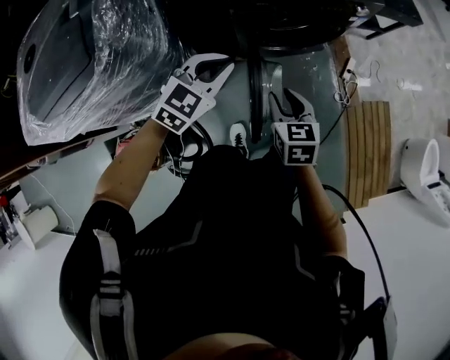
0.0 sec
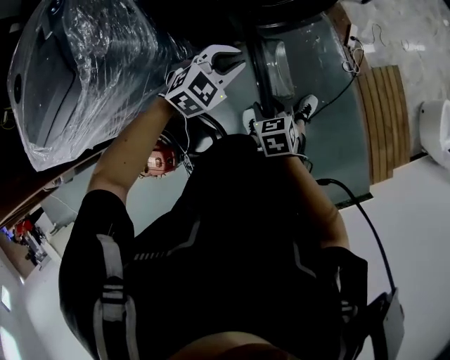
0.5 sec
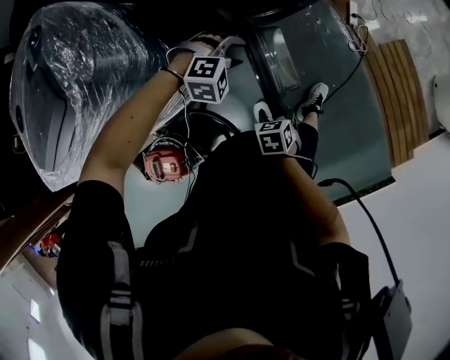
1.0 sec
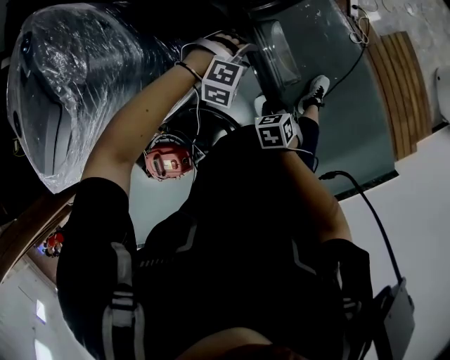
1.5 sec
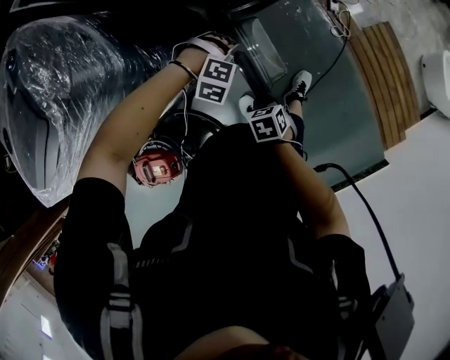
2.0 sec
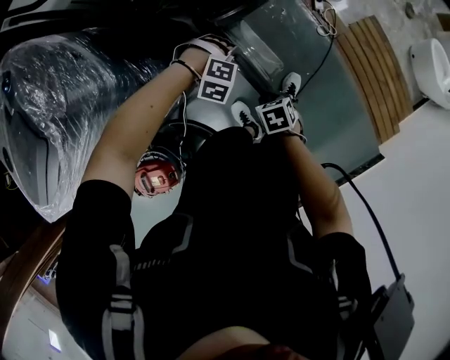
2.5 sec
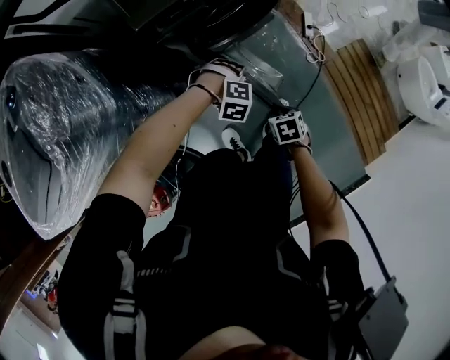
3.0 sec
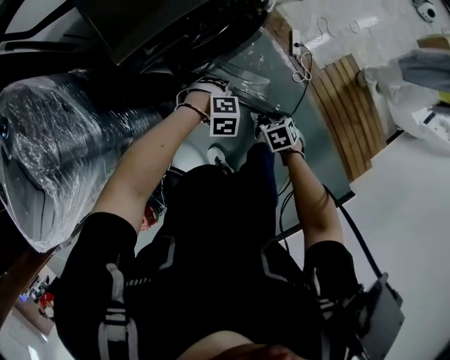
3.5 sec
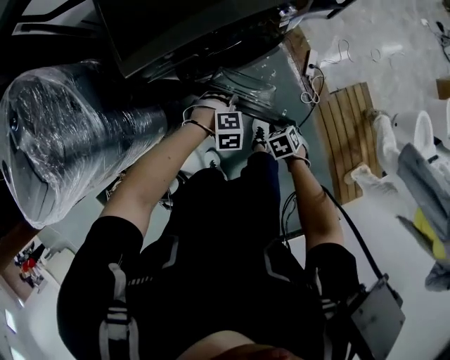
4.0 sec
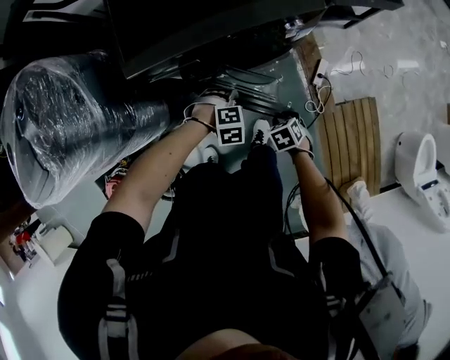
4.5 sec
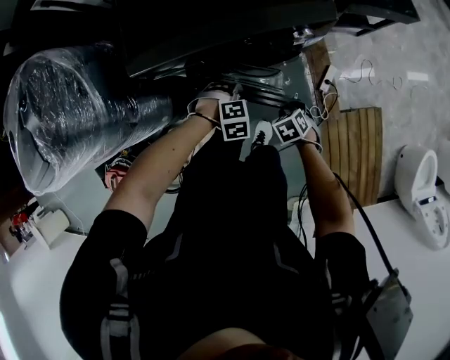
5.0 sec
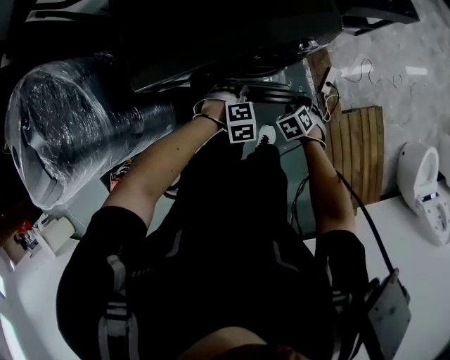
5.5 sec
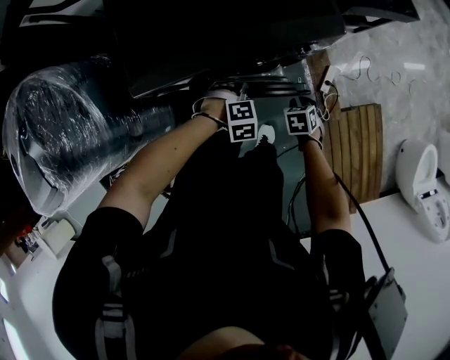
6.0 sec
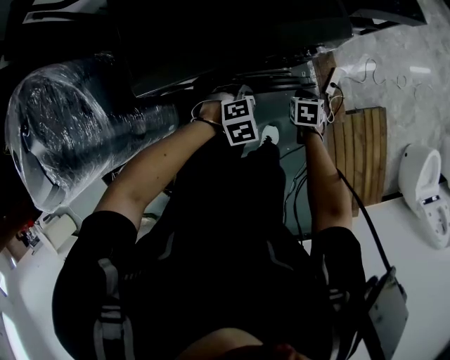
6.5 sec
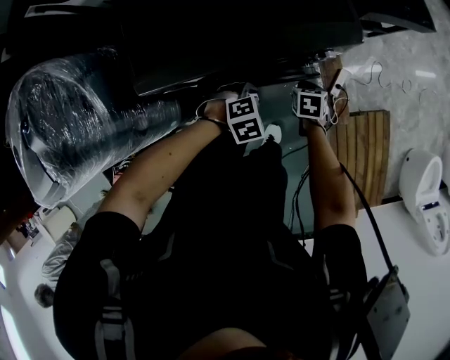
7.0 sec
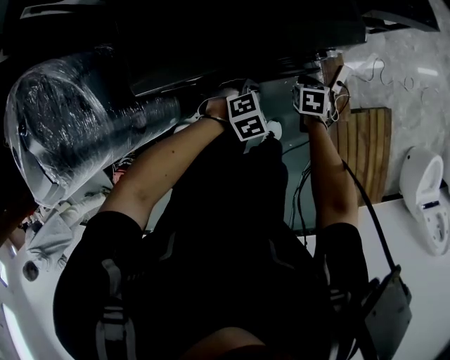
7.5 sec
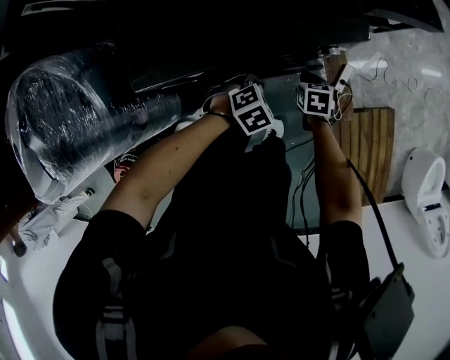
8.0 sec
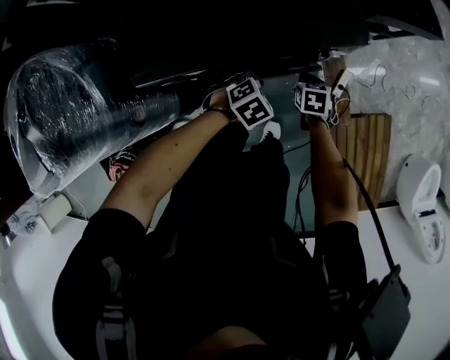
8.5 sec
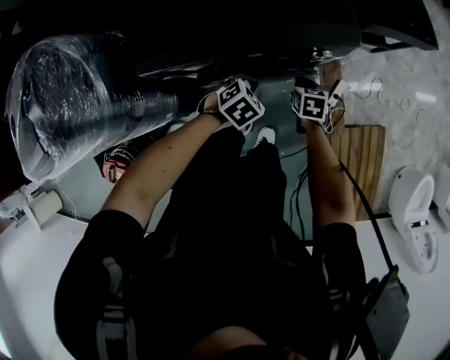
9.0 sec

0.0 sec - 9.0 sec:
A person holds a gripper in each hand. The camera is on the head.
0.0 sec - 2.0 sec: Both grippers travel together downward, approximately 25 cm. The right gripper swivels roughly 30 degrees. Meanwhile the left gripper twists approximately 70 degrees clockwise, seen from behind, and opens.
2.0 sec - 4.5 sec: The right gripper shifts by some 40 cm, and rotates approximately 30 degrees. Meanwhile the left gripper changes place by roughly 25 cm, and rotates around the line of its fingers by about 40 degrees, counterclockwise from behind.
4.5 sec - 7.0 sec: The right gripper moves some 20 cm, rotates approximately 30 degrees, and closes, while the left gripper shifts by roughly 10 cm.
7.0 sec - 9.0 sec: The left gripper turns by roughly 30 degrees, and closes.

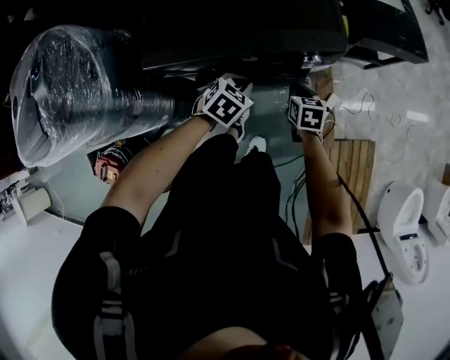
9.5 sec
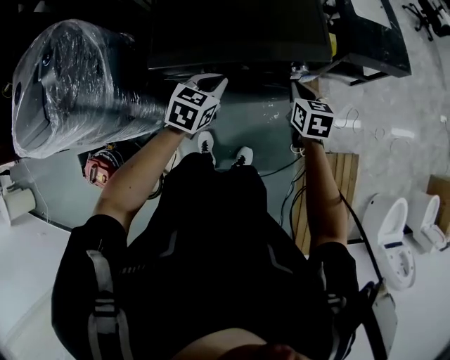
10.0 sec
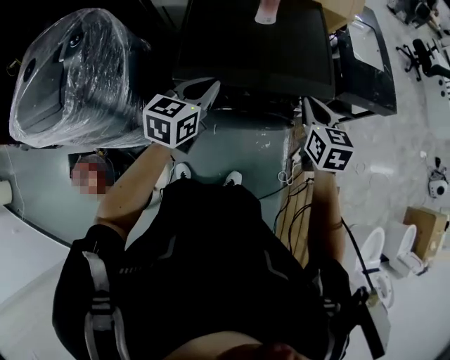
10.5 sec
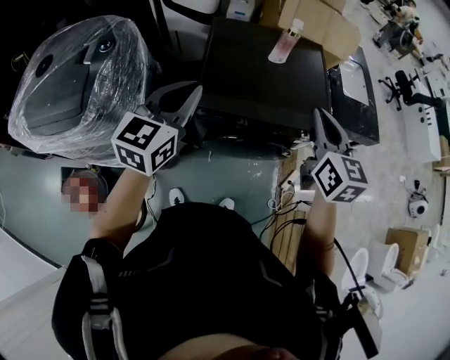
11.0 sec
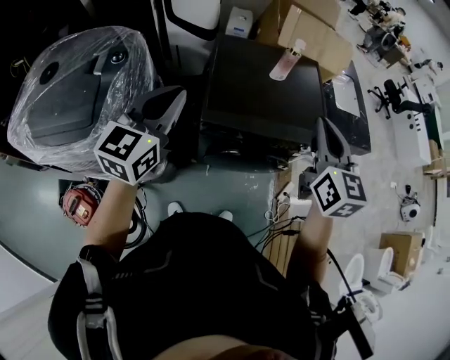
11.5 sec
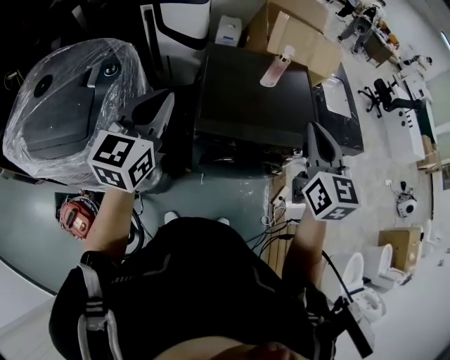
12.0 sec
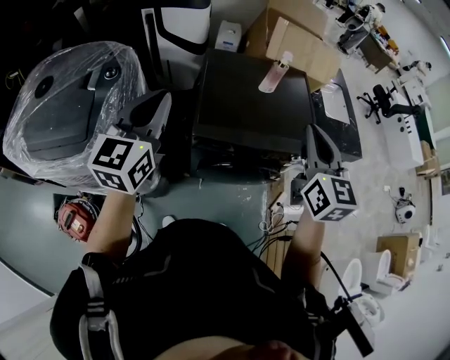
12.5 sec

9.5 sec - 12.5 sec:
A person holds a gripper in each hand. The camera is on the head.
9.5 sec - 11.0 sec: The left gripper travels upward and to the left by some 50 cm, and points its fingers approximately 50 degrees further upward. Meanwhile the right gripper moves upward, about 50 cm, and tips its fingers upward by roughly 40 degrees.
11.0 sec - 12.5 sec: The left gripper moves to the left and upward, approximately 10 cm; the right gripper goes some 5 cm upward.

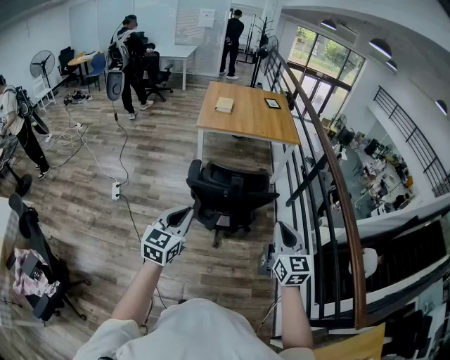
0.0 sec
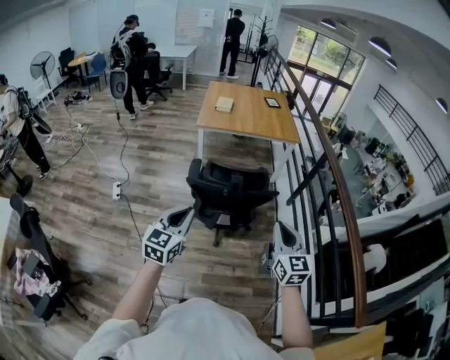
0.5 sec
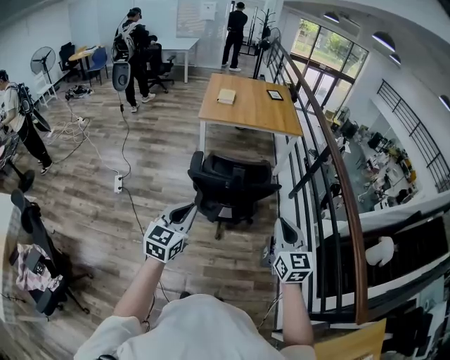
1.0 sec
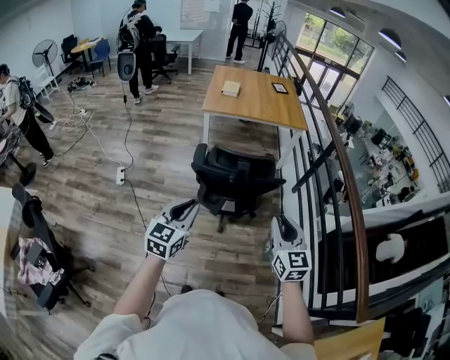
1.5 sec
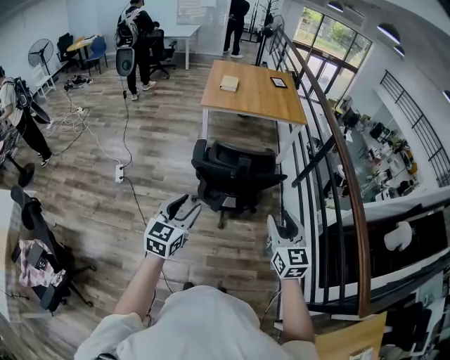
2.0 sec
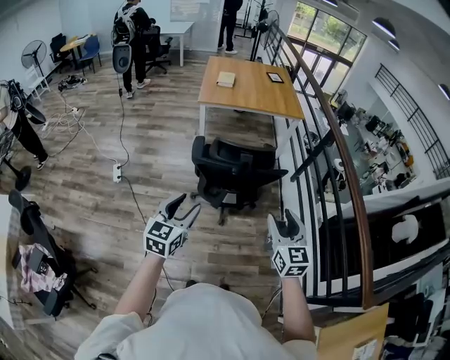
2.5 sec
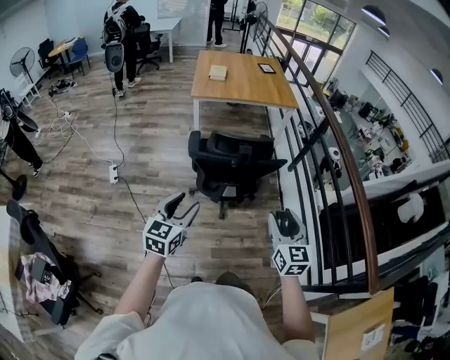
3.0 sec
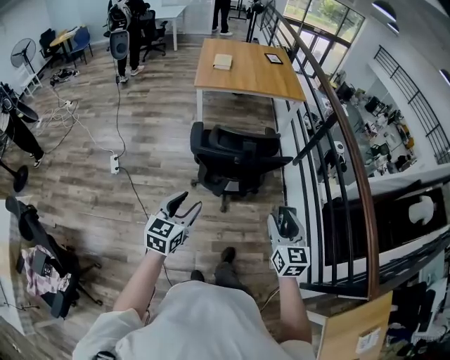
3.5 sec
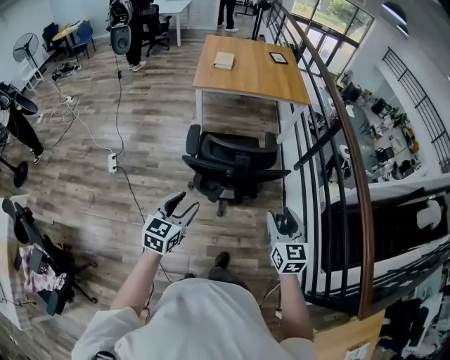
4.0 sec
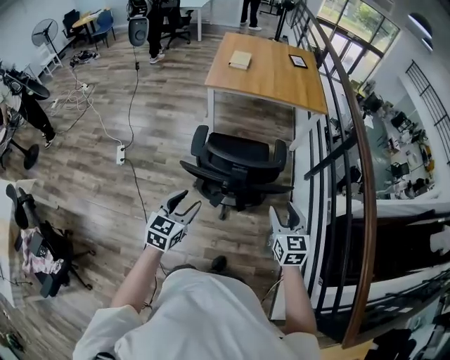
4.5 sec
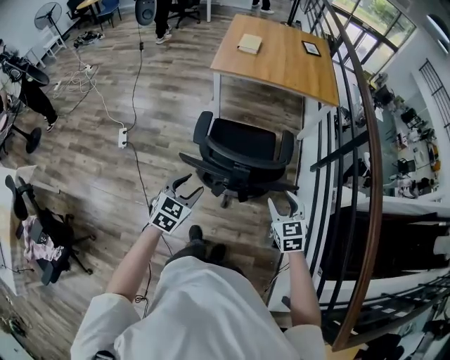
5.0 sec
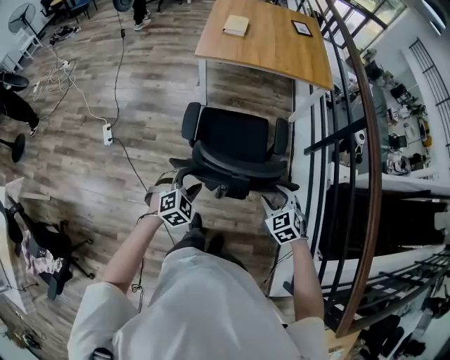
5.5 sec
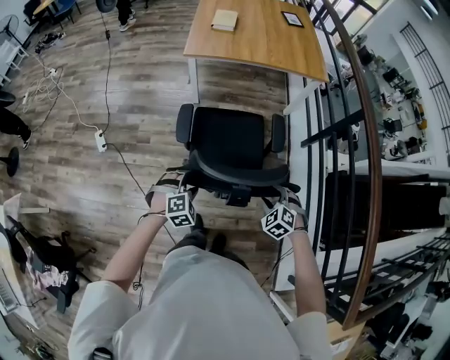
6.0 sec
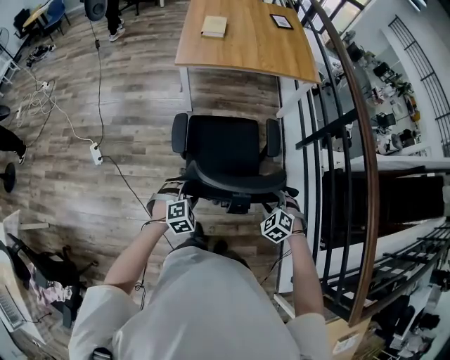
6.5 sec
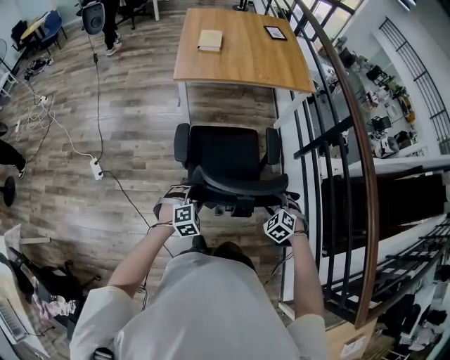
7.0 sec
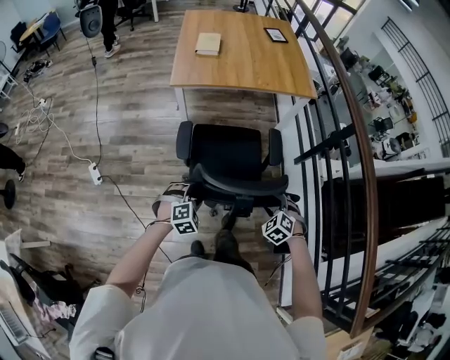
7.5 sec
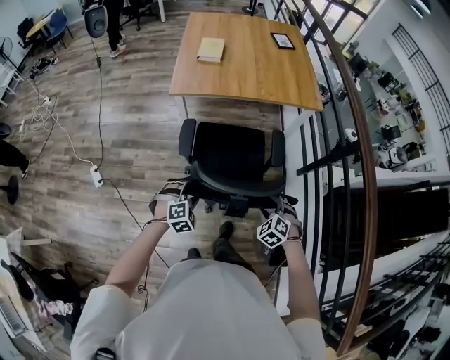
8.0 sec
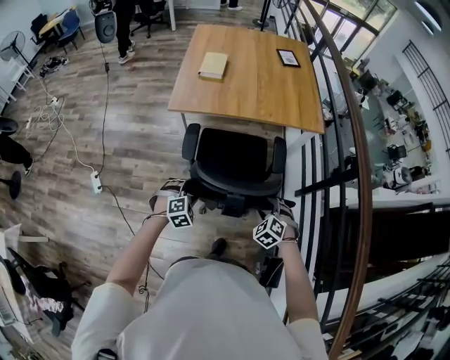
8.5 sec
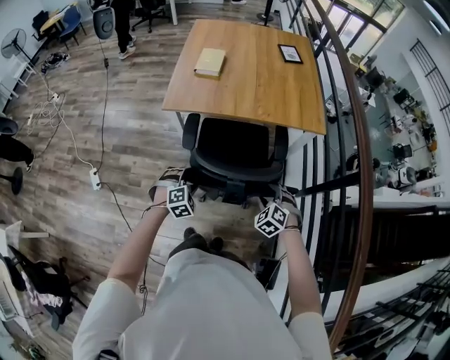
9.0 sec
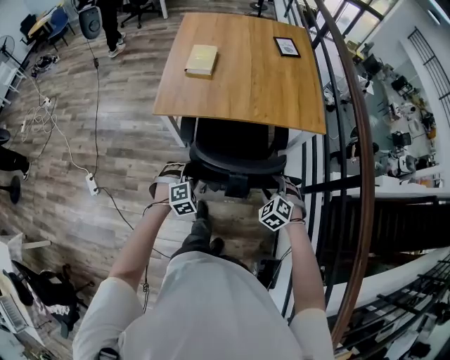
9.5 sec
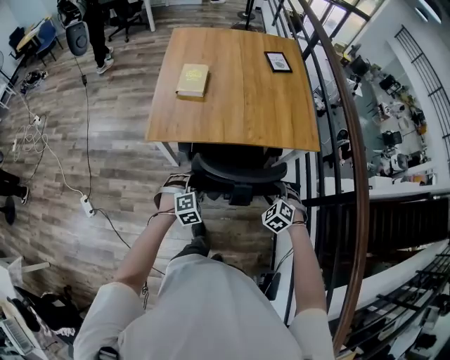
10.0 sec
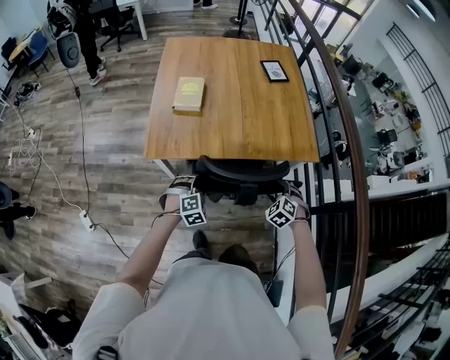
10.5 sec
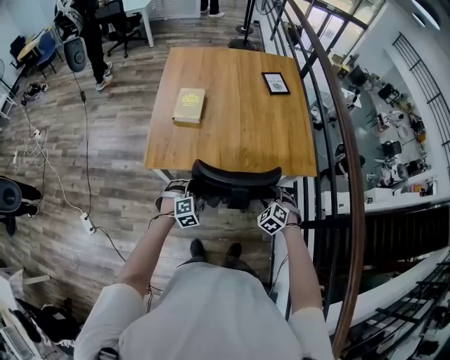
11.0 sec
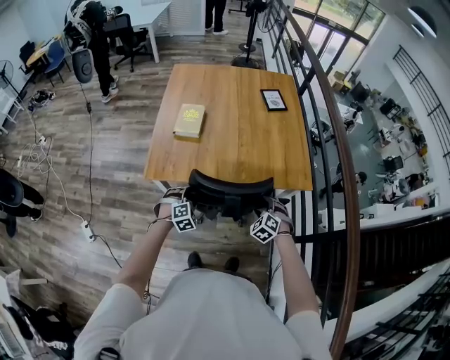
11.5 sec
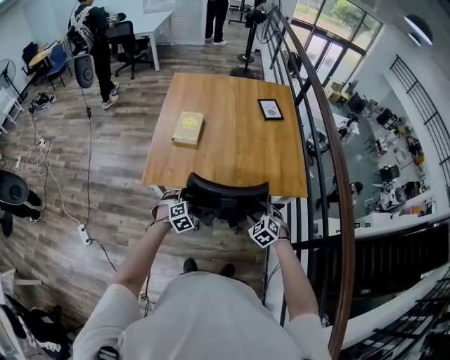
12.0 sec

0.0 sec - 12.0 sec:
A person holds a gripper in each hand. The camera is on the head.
0.0 sec - 2.0 sec: The right gripper opens up. The left gripper opens its fingers.
2.0 sec - 4.0 sec: Both grippers travel together forward and downward, approximately 10 cm.
4.0 sec - 6.0 sec: The right gripper shifts roughly 30 cm downward and forward, and tips its fingers downward by some 40 degrees, while the left gripper travels forward and downward by approximately 30 cm, and twists about 50 degrees clockwise, seen from behind.
6.0 sec - 8.0 sec: The two grippers go about 20 cm forward.
8.0 sec - 10.0 sec: The grippers both shift forward by about 35 cm.
10.0 sec - 12.0 sec: Both grippers move forward, some 10 cm.

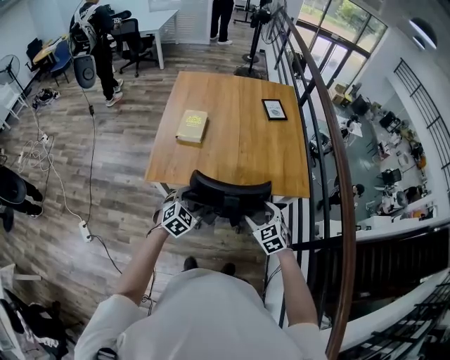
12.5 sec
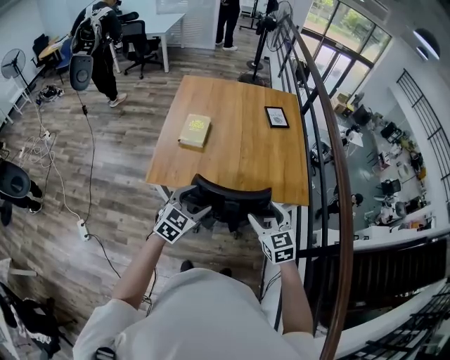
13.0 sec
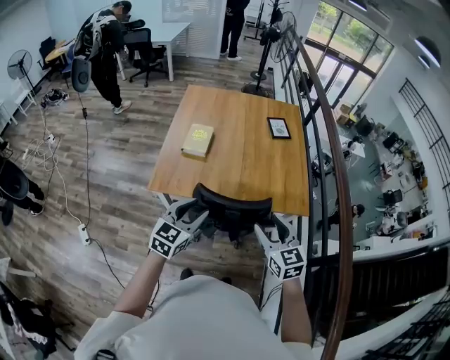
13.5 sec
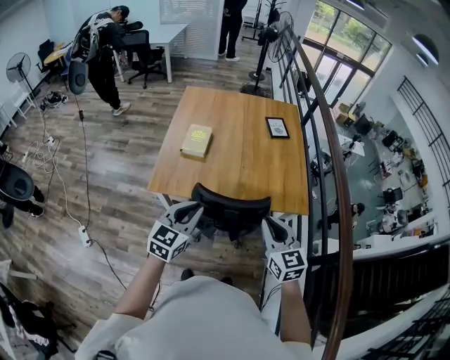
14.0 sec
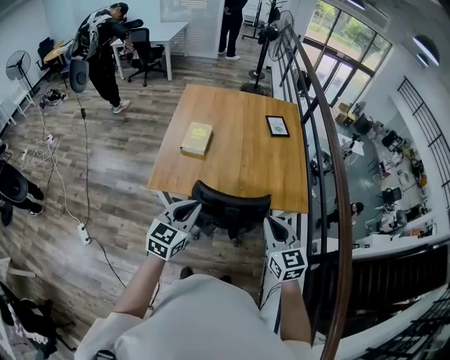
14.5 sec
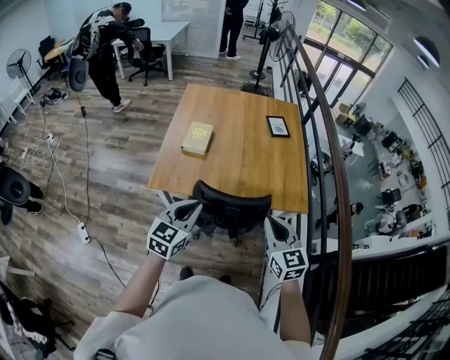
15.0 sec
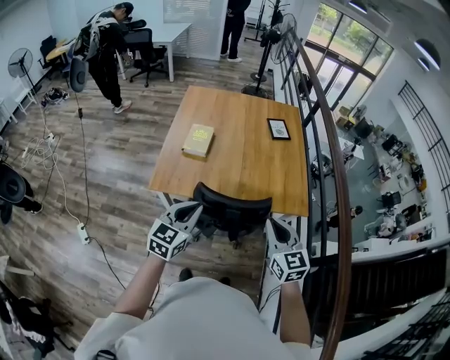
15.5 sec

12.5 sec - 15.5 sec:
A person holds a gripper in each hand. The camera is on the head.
12.5 sec - 14.0 sec: The grippers both shift upward by approximately 15 cm. The left gripper swivels roughly 40 degrees, and closes up. The right gripper changes its angle by roughly 30 degrees, and closes up.
14.0 sec - 15.5 sec: Both grippers stay put.
